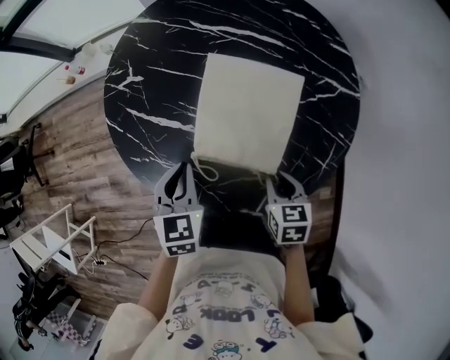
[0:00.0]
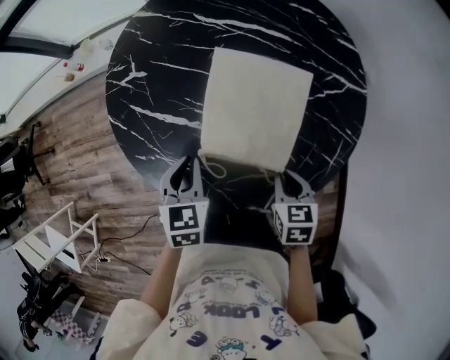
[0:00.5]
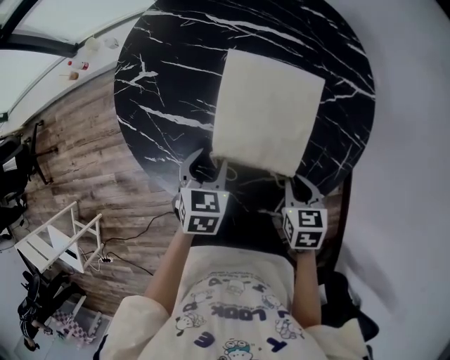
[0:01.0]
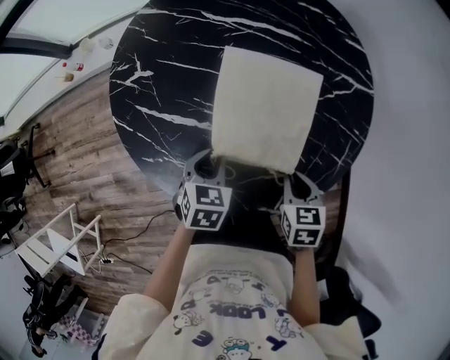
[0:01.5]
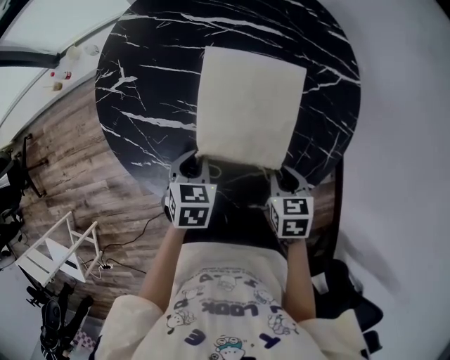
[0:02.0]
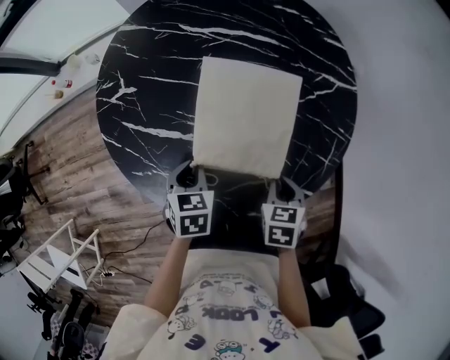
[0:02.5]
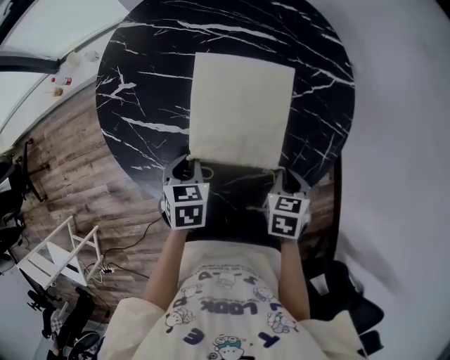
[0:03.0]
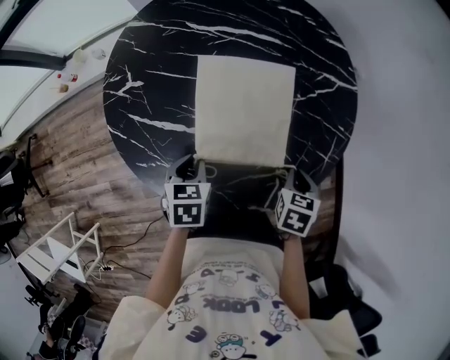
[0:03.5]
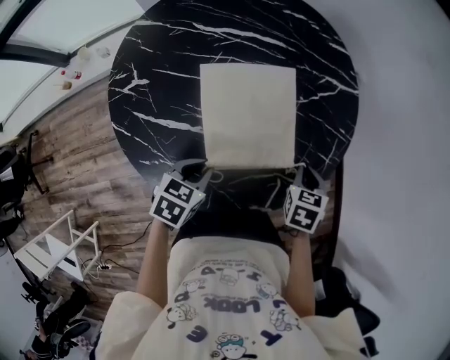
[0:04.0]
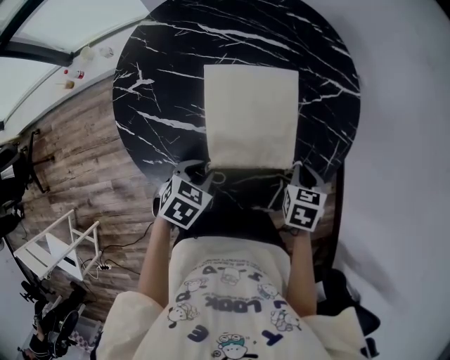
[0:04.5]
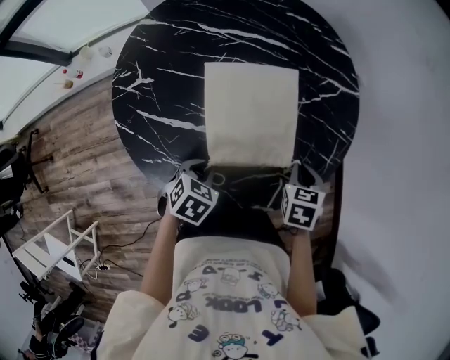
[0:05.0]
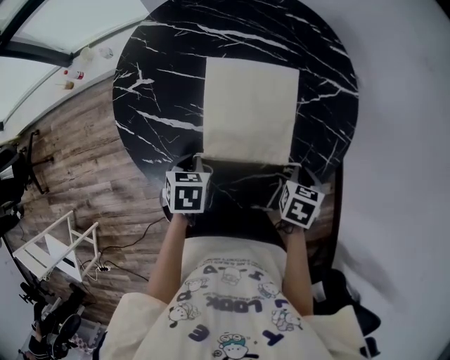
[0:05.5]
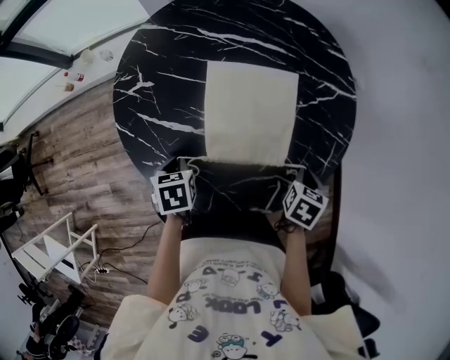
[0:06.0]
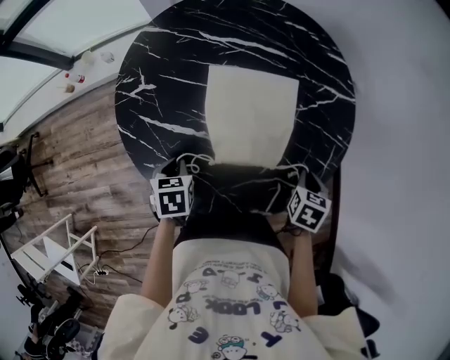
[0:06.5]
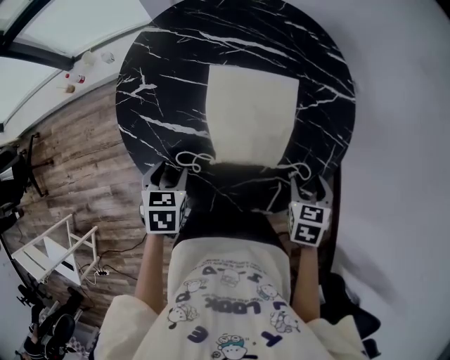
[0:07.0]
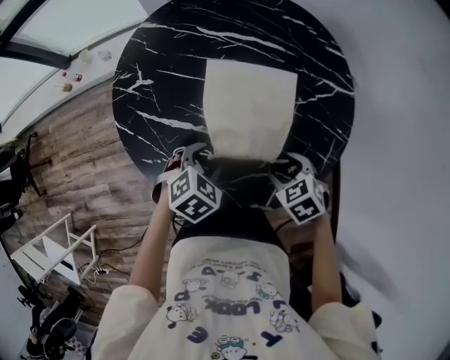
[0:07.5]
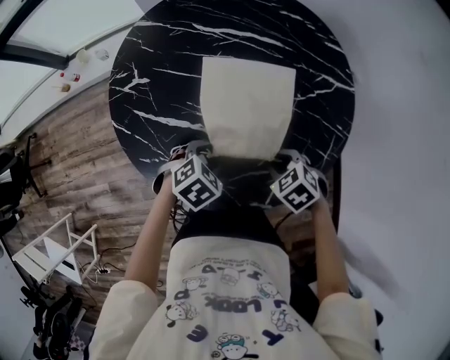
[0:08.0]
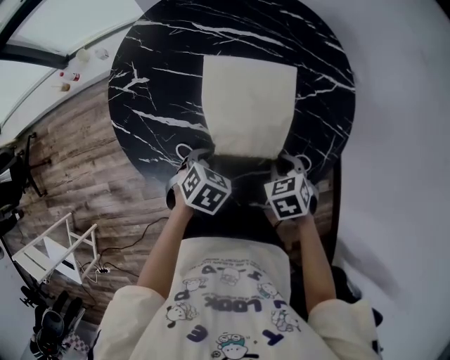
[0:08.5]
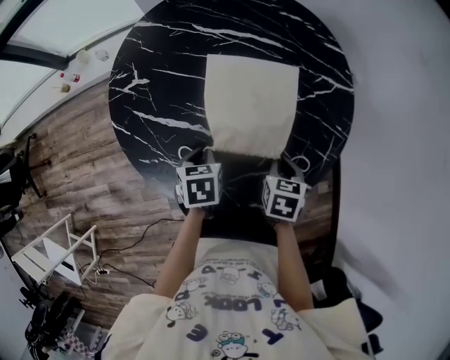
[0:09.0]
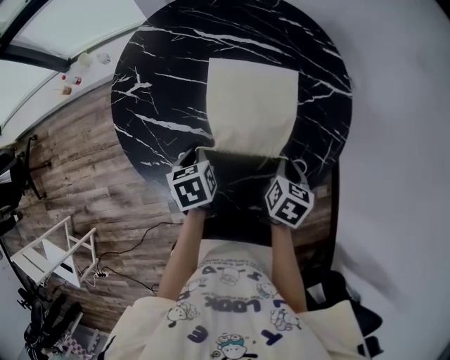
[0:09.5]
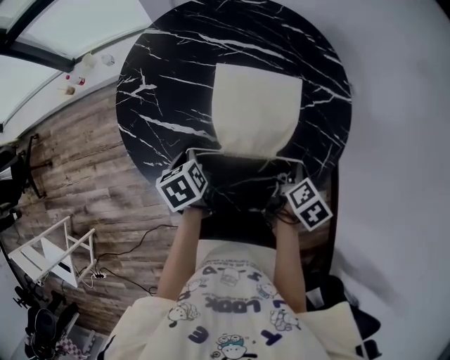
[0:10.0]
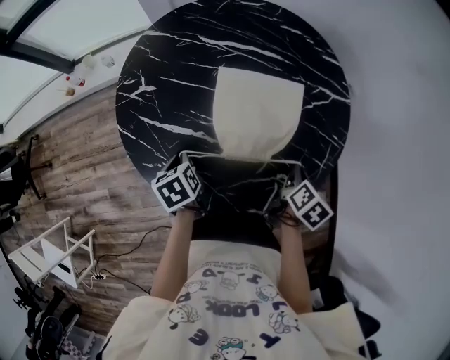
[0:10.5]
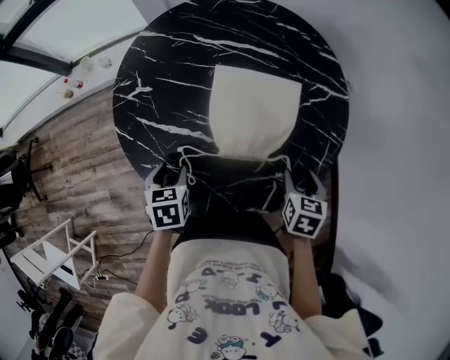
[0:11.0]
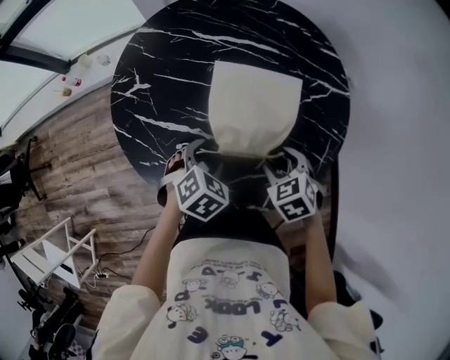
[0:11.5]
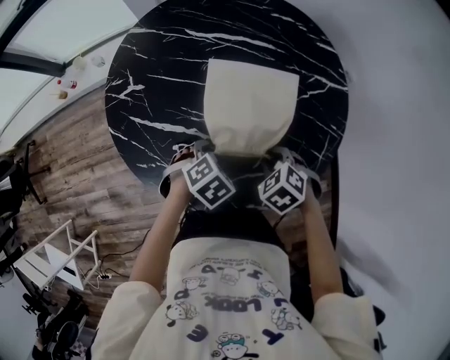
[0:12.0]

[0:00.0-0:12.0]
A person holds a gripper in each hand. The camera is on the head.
0:00.0 to 0:02.0: The left gripper travels downward by some 10 cm, swivels about 20 degrees, and opens and closes again.
0:02.0 to 0:04.0: The right gripper shifts by some 10 cm, while the left gripper turns by roughly 20 degrees.
0:04.0 to 0:06.0: The left gripper changes place by some 10 cm, and swivels roughly 40 degrees.
0:06.0 to 0:08.0: The right gripper is displaced to the left by about 10 cm, rotates around the line of its fingers by roughly 60 degrees, counterclockwise from behind, and opens, then closes once more, while the left gripper travels to the right by about 10 cm, rotates around the line of its fingers by some 60 degrees, clockwise from behind, and opens its fingers.
0:08.0 to 0:10.0: The right gripper travels to the right by some 10 cm, and rotates around the line of its fingers by roughly 80 degrees, clockwise from behind. Meanwhile the left gripper shifts approximately 10 cm to the left, rotates around the line of its fingers by roughly 80 degrees, counterclockwise from behind, and closes up.
0:10.0 to 0:12.0: The left gripper ends up about 10 cm from where it was, rotates around the line of its fingers by about 80 degrees, clockwise from behind, and opens up, while the right gripper ends up about 10 cm from where it was, twists roughly 90 degrees counterclockwise, seen from behind, and opens, then closes once more.

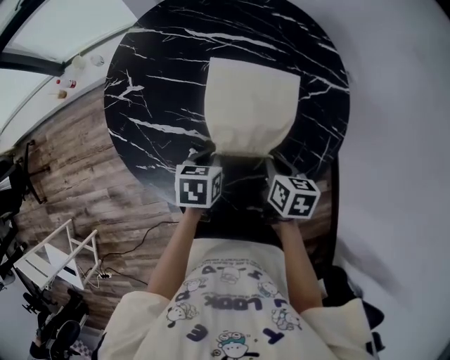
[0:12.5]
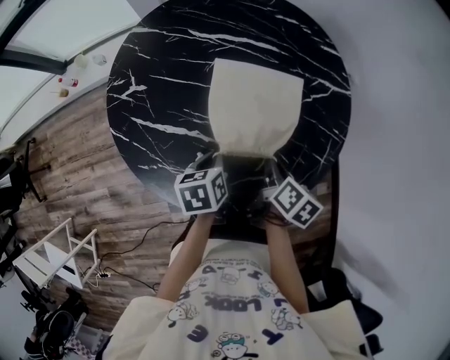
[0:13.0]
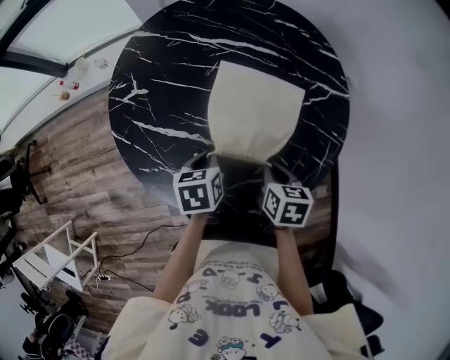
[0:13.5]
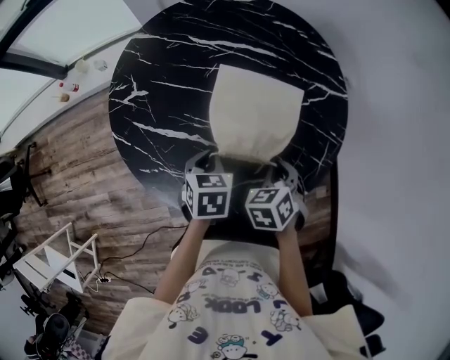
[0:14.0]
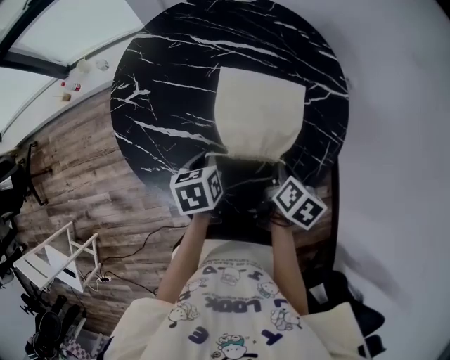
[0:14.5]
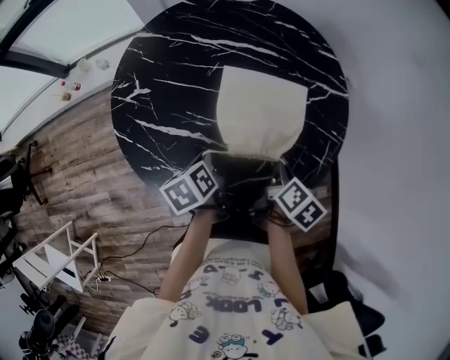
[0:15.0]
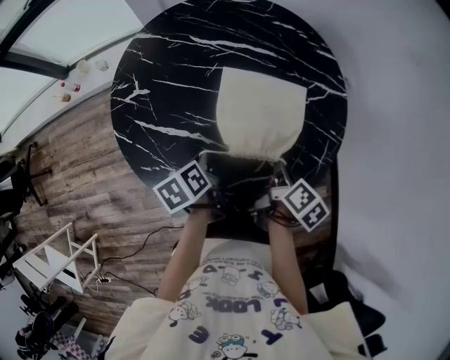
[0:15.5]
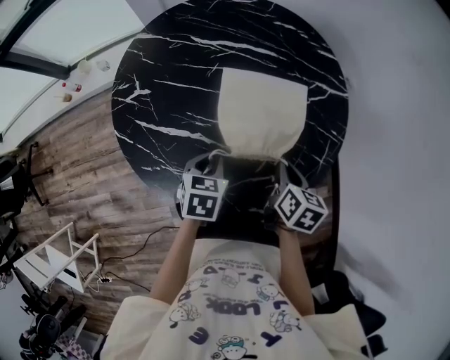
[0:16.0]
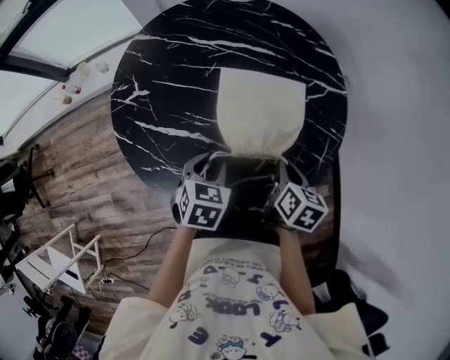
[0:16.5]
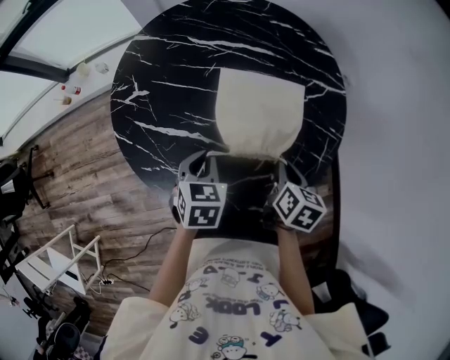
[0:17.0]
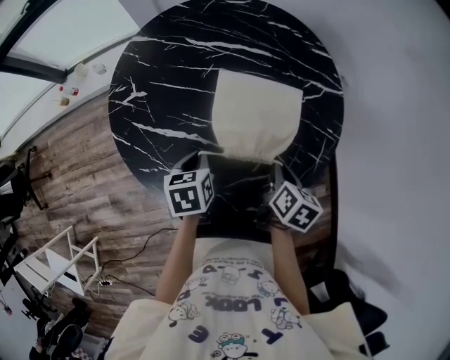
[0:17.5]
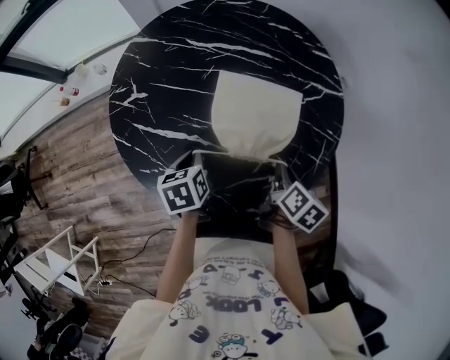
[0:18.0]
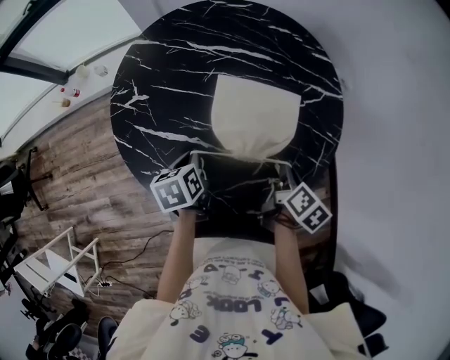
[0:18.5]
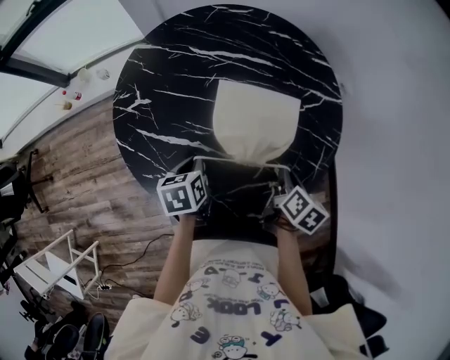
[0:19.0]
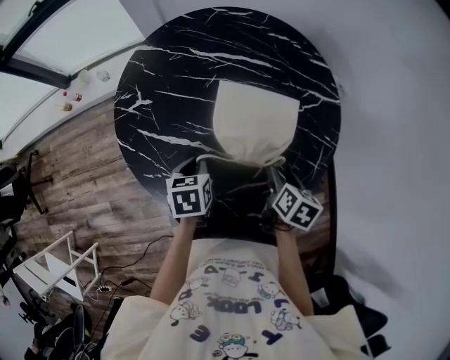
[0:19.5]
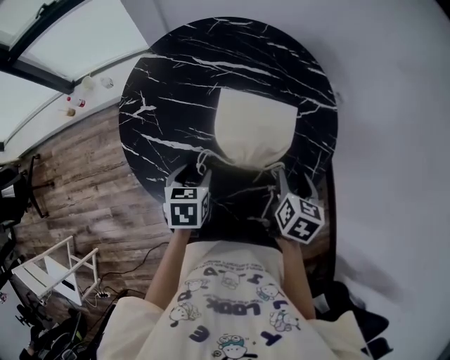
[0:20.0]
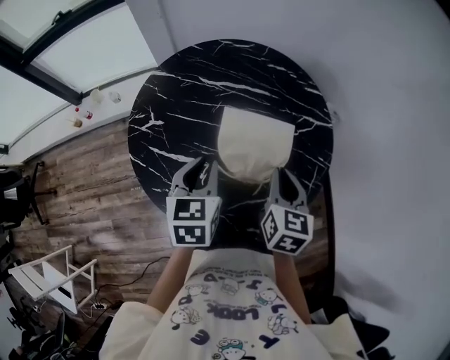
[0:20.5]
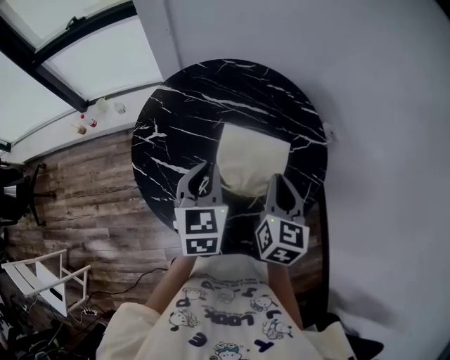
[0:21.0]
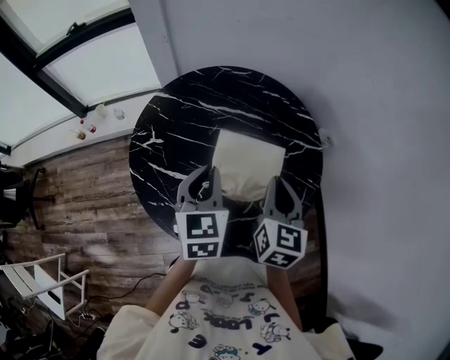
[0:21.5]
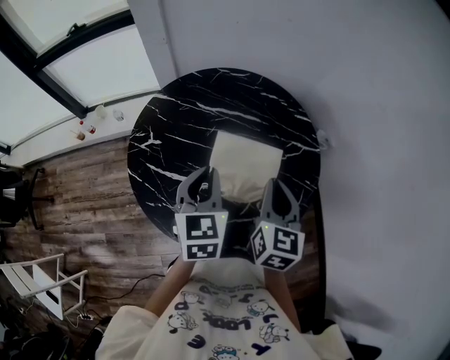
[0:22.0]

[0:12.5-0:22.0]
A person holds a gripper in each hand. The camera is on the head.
0:12.5 to 0:14.5: The right gripper turns by some 20 degrees.
0:14.5 to 0:16.5: The left gripper rotates about 40 degrees, and opens its fingers.
0:16.5 to 0:18.0: The left gripper heads to the left, covering some 5 cm, swivels some 40 degrees, and closes its fingers.
0:18.0 to 0:20.0: The right gripper heads upward, covering roughly 5 cm, turns by about 30 degrees, and opens its fingers, while the left gripper opens up.
0:20.0 to 0:22.0: Both grippers move upward, about 15 cm. The right gripper rotates some 30 degrees, and closes up, while the left gripper angles its fingers upward, by roughly 30 degrees, and closes its fingers.

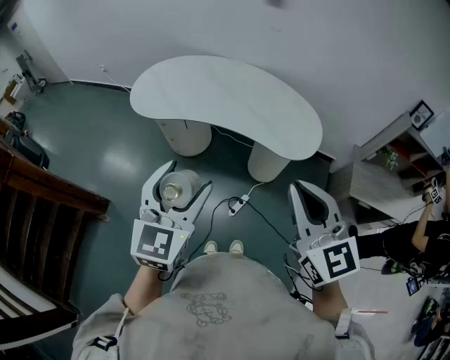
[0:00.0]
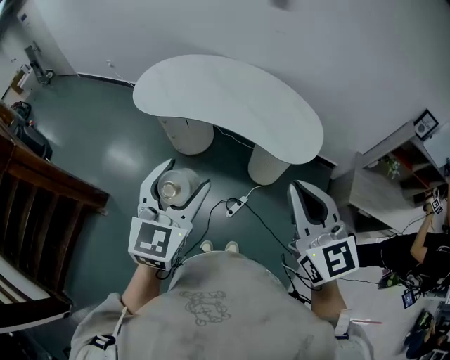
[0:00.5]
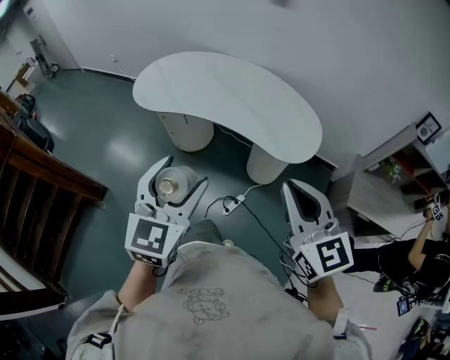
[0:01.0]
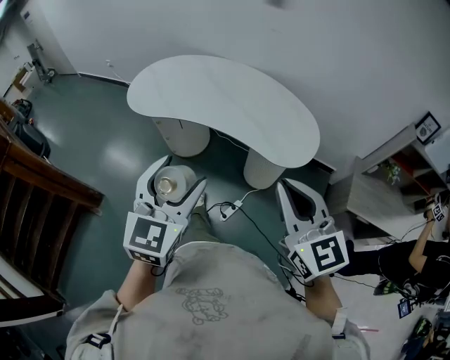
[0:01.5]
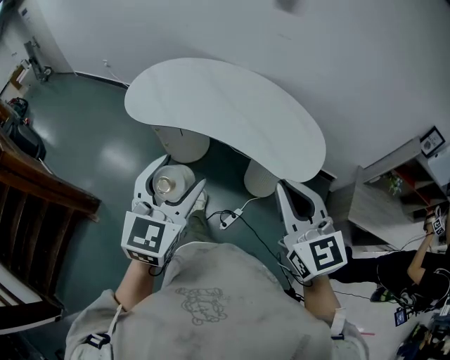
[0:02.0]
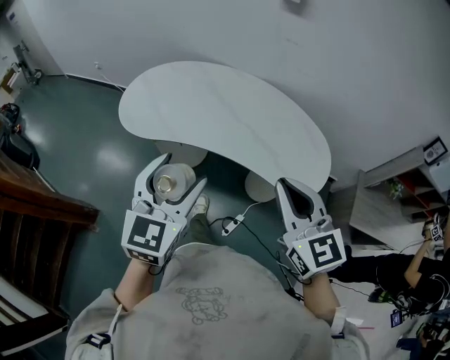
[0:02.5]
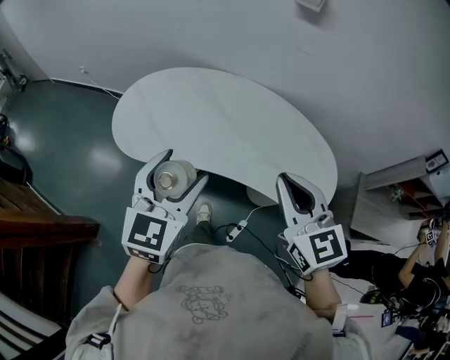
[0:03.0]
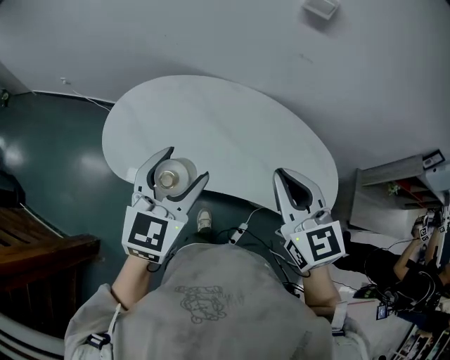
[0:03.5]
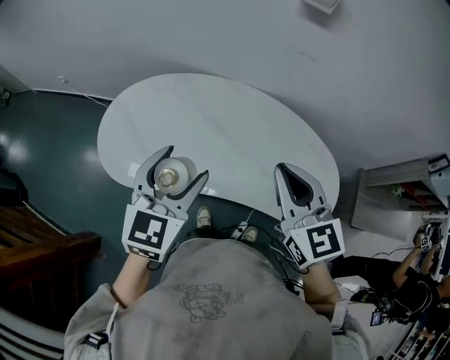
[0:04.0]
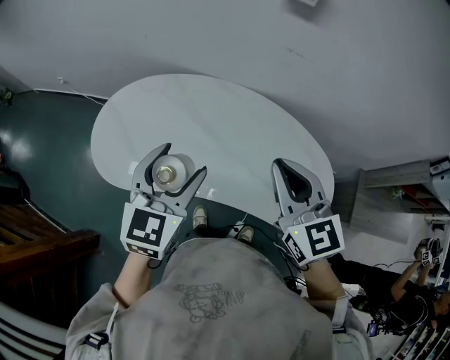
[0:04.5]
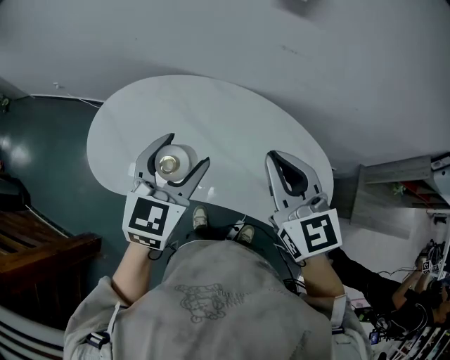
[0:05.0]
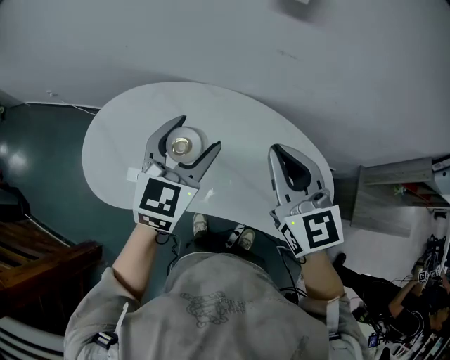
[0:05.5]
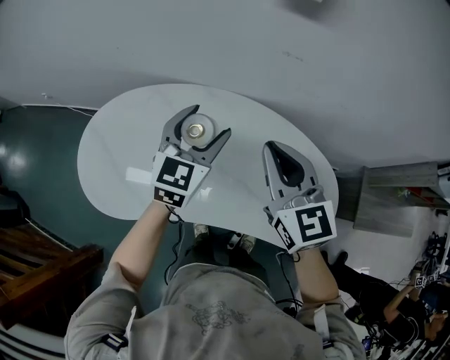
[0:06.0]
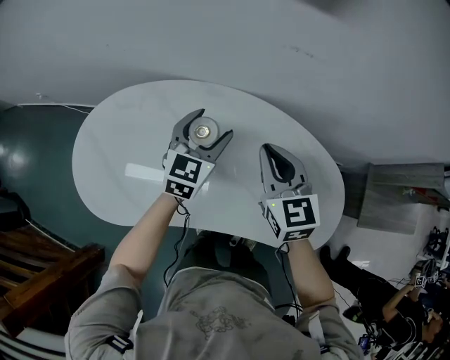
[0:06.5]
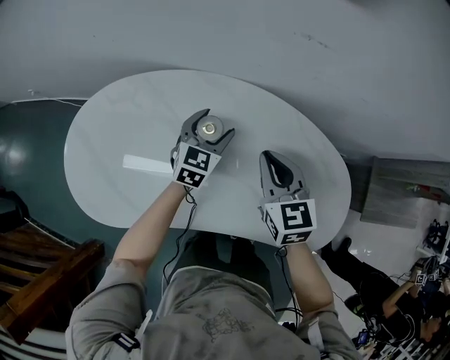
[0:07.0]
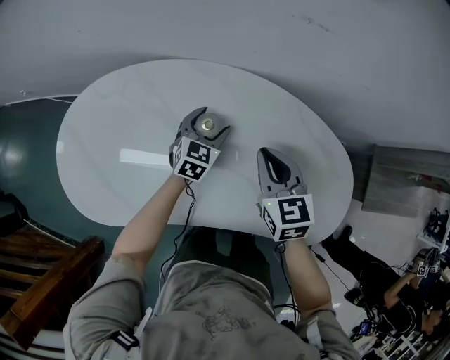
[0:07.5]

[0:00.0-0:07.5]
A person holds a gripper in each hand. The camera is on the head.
0:00.0 to 0:02.0: The left gripper travels forward by approximately 10 cm, while the right gripper moves forward and downward, some 15 cm.
0:02.0 to 0:04.0: Both grippers move forward, about 40 cm.
0:04.0 to 0:05.5: The two grippers go about 15 cm forward and to the right.
0:05.5 to 0:07.5: The left gripper is displaced downward and forward by approximately 35 cm, and rotates roughly 20 degrees, while the right gripper goes about 25 cm downward, and turns by approximately 30 degrees.
